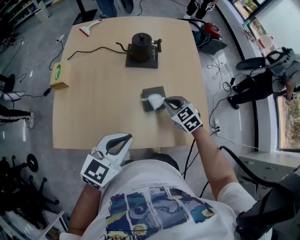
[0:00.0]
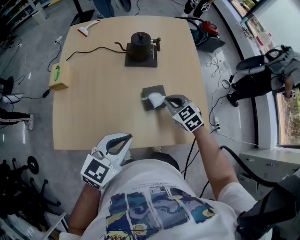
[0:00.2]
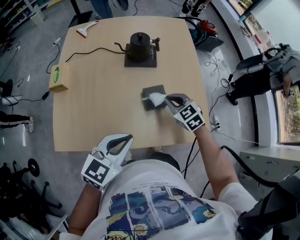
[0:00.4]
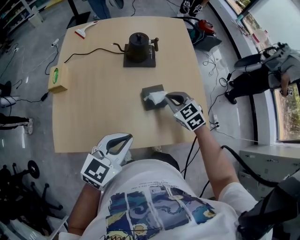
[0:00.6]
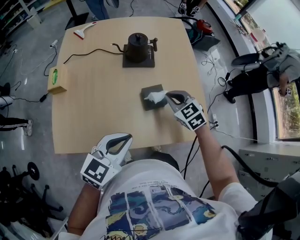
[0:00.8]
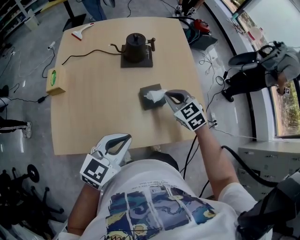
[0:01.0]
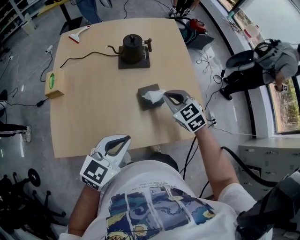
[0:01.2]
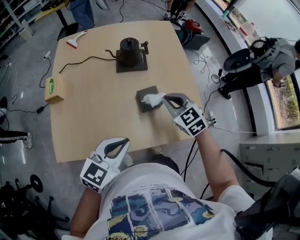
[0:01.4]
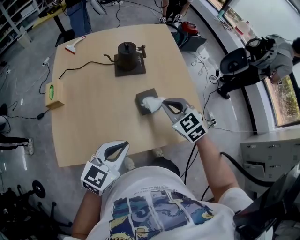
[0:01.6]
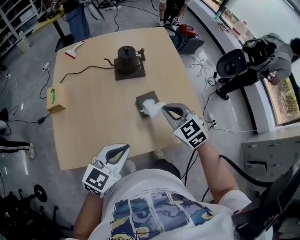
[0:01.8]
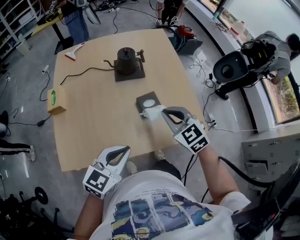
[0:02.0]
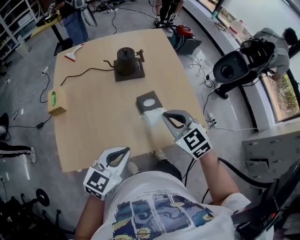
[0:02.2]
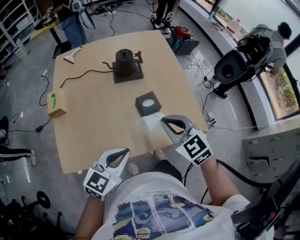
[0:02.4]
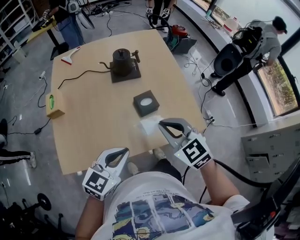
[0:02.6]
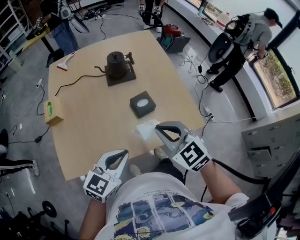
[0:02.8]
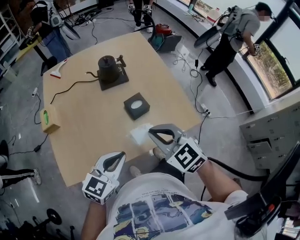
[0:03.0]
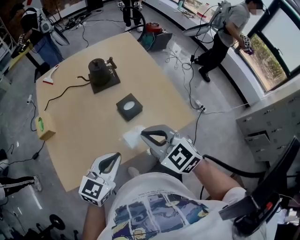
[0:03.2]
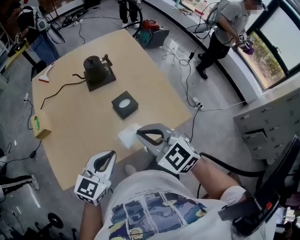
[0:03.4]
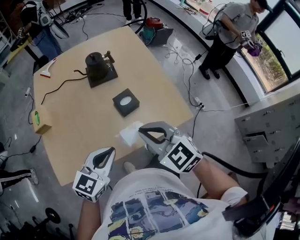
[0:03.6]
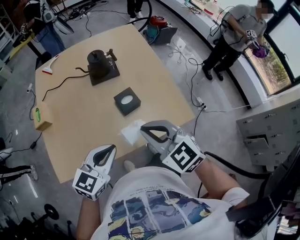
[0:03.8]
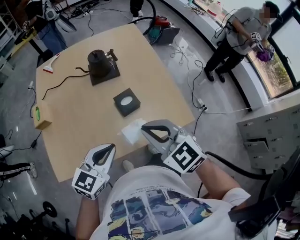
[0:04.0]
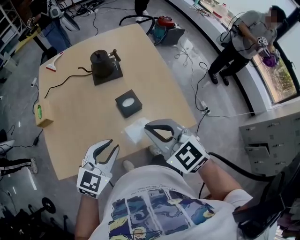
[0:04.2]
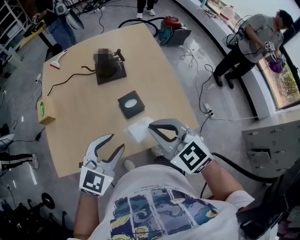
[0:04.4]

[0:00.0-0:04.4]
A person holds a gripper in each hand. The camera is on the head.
0:00.0 to 0:01.4: The right gripper is displaced upward by roughly 10 cm.
0:01.4 to 0:03.0: The right gripper is displaced backward and upward by approximately 20 cm.
0:03.0 to 0:04.4: The right gripper is displaced to the right by approximately 5 cm. The left gripper moves to the right and forward, some 10 cm, and opens.

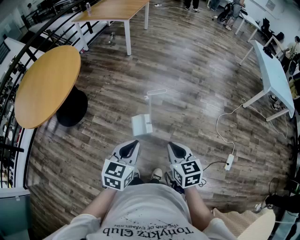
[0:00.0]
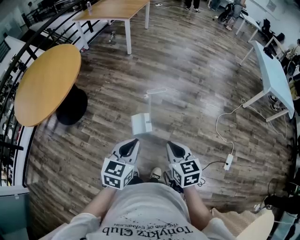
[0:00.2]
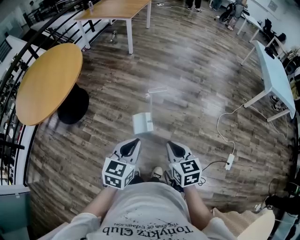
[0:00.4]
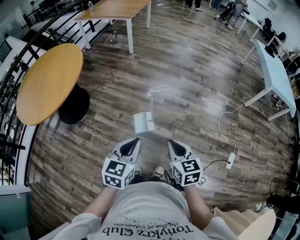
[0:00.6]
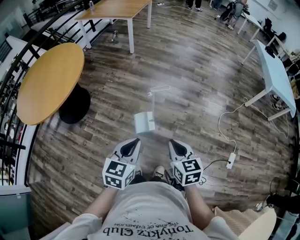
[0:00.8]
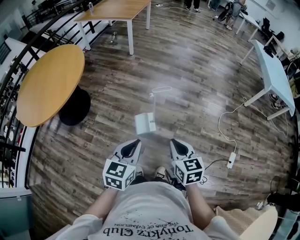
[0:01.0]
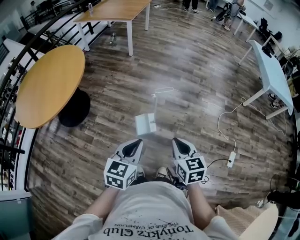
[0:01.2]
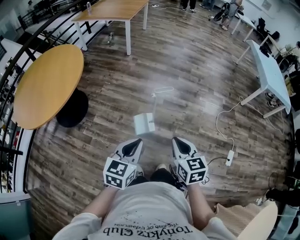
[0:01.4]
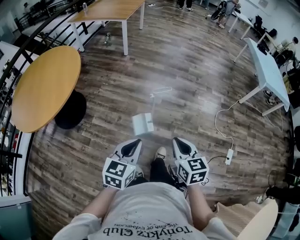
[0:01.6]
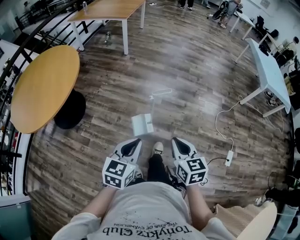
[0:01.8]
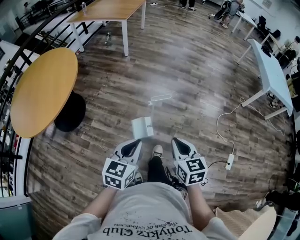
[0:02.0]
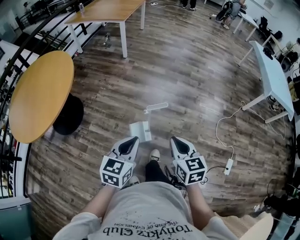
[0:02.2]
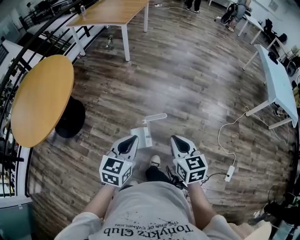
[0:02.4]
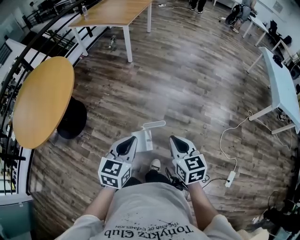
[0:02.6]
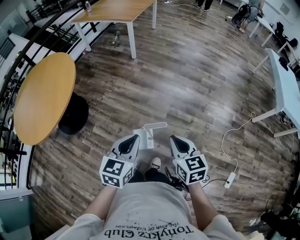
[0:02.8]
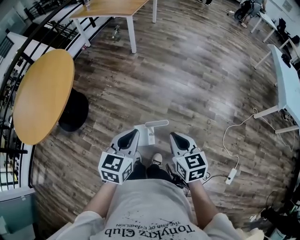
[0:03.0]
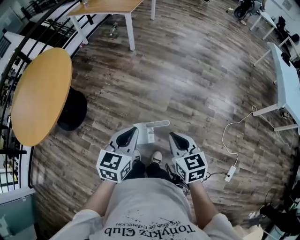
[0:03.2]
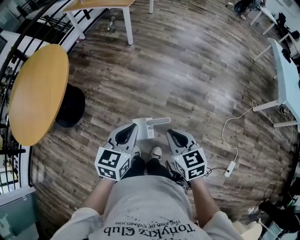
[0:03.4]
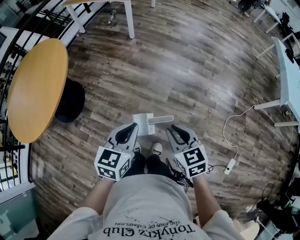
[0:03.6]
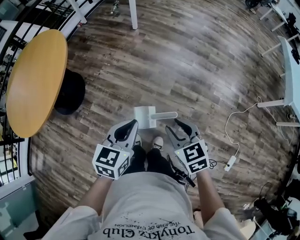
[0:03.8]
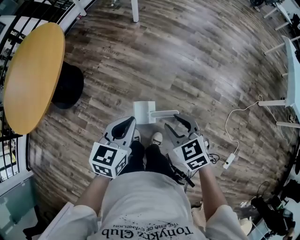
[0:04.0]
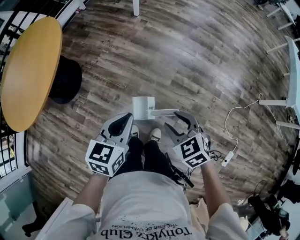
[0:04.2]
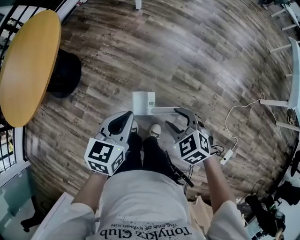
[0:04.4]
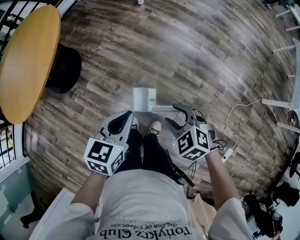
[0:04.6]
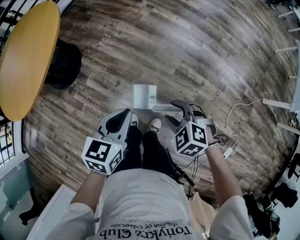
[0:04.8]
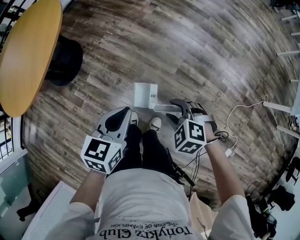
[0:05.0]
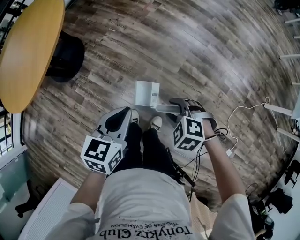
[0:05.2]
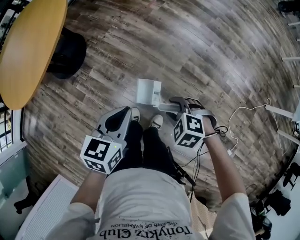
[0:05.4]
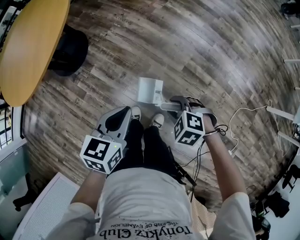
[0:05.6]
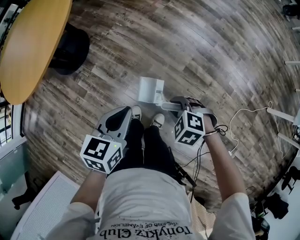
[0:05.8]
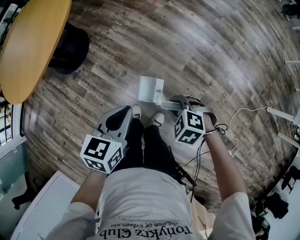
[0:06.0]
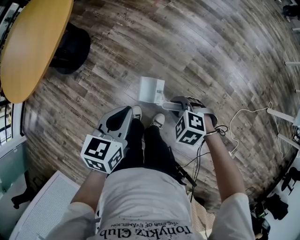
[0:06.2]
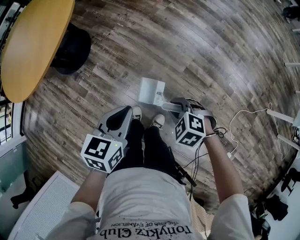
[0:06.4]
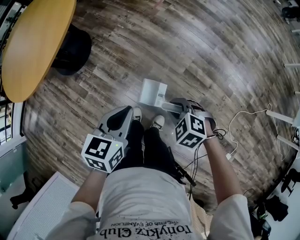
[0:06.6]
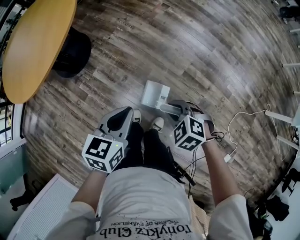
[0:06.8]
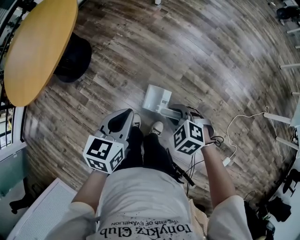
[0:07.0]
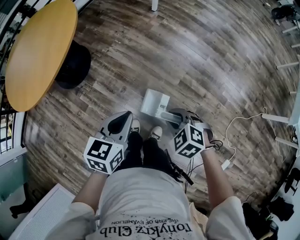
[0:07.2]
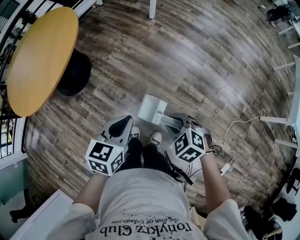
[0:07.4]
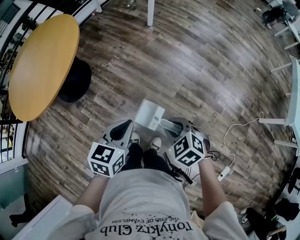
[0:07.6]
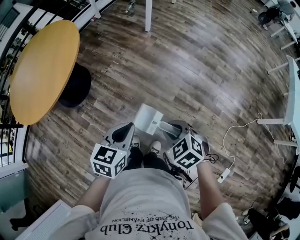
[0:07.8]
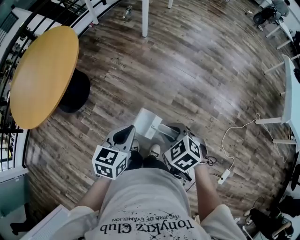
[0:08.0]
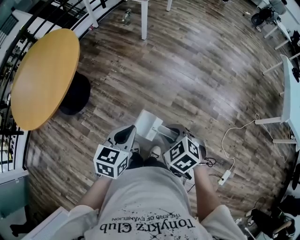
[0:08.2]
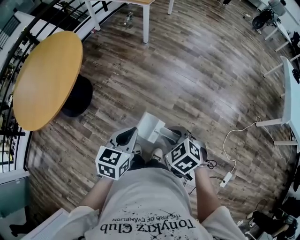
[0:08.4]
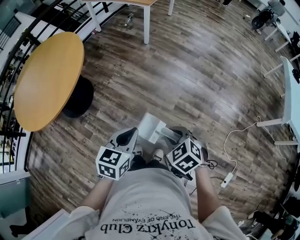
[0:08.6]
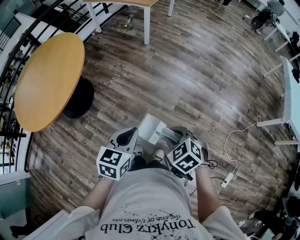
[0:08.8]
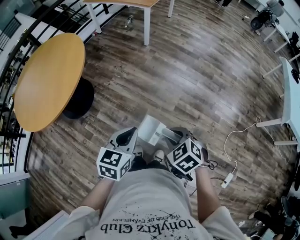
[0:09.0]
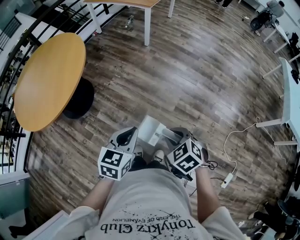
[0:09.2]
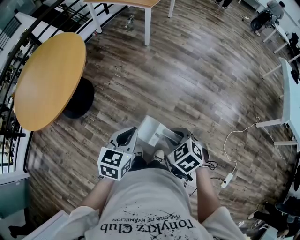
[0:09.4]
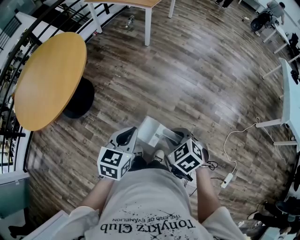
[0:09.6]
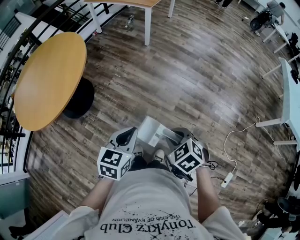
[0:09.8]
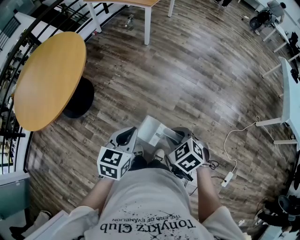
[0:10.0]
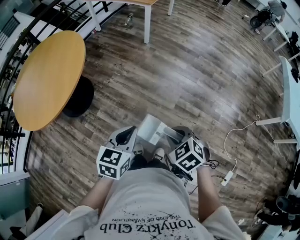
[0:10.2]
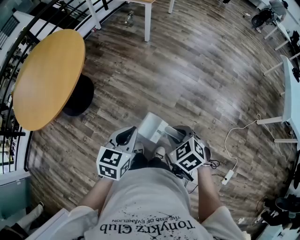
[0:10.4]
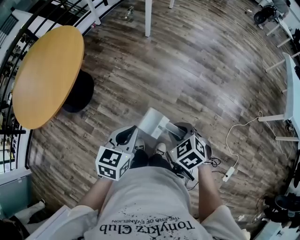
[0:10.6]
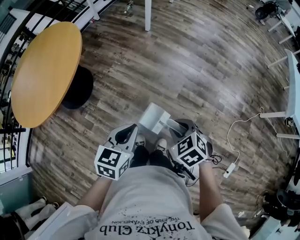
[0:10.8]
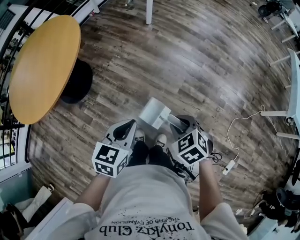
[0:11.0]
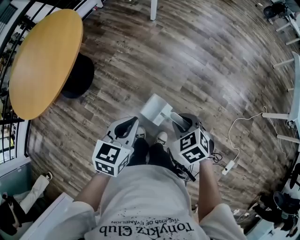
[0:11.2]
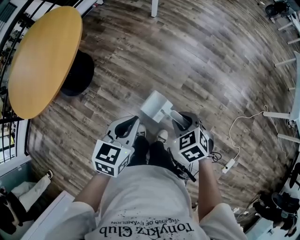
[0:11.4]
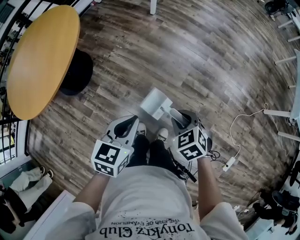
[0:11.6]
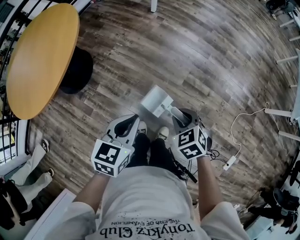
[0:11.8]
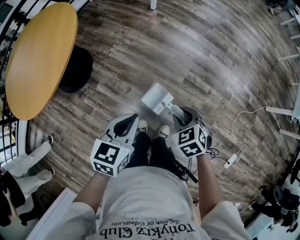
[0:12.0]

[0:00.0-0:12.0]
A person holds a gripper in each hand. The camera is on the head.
0:00.0 to 0:01.6: The left gripper travels to the left by approximately 5 cm.
0:01.6 to 0:03.0: Both grippers move forward, roughly 30 cm.
0:03.0 to 0:04.4: The two grippers go approximately 15 cm downward and forward. The right gripper rotates about 50 degrees, and opens up.
0:04.4 to 0:06.0: The right gripper shifts some 10 cm downward, rotates about 30 degrees, and closes its fingers. The left gripper moves some 5 cm.
0:06.0 to 0:07.6: The left gripper goes approximately 10 cm upward, while the right gripper is displaced upward by some 15 cm, and turns by roughly 20 degrees.
0:07.6 to 0:09.0: The left gripper ends up about 5 cm from where it was; the right gripper ends up roughly 5 cm from where it was.
0:09.0 to 0:10.4: There are only small adjustments of the grippers.
0:10.4 to 0:12.0: The right gripper heads downward and forward, covering approximately 15 cm. The left gripper moves downward, some 5 cm.

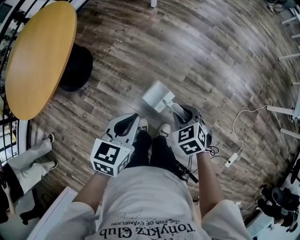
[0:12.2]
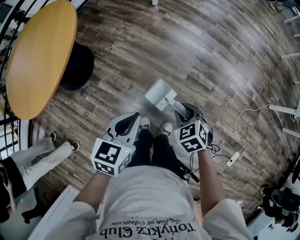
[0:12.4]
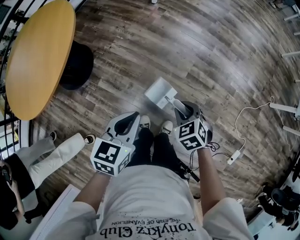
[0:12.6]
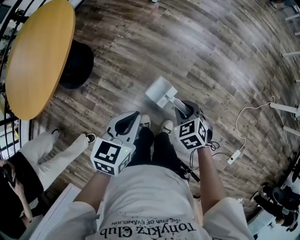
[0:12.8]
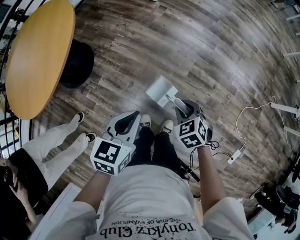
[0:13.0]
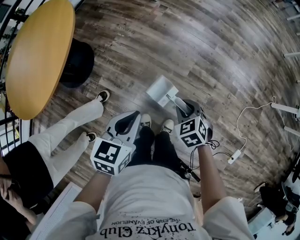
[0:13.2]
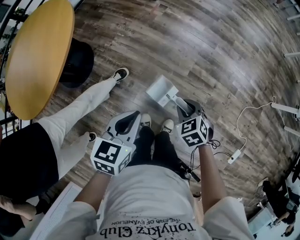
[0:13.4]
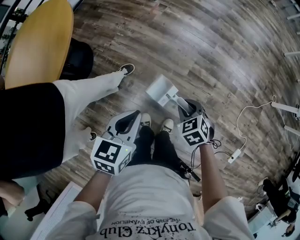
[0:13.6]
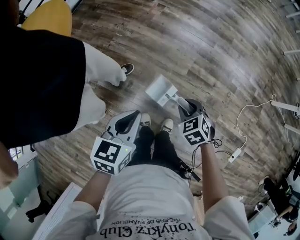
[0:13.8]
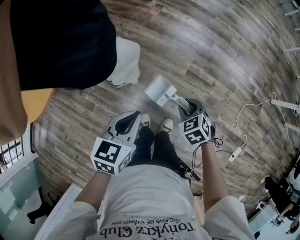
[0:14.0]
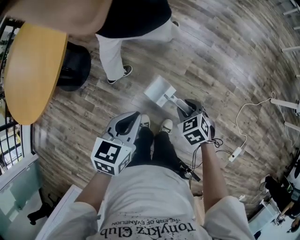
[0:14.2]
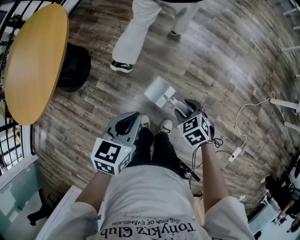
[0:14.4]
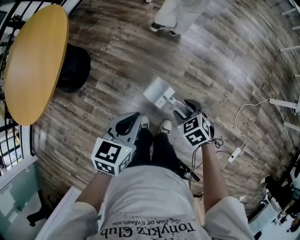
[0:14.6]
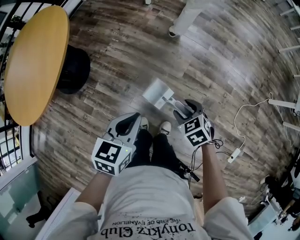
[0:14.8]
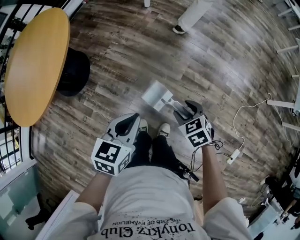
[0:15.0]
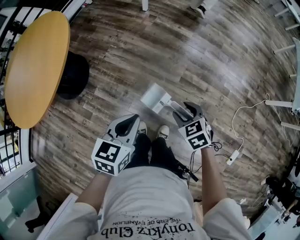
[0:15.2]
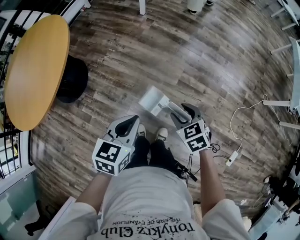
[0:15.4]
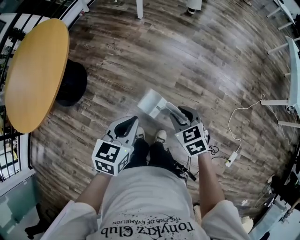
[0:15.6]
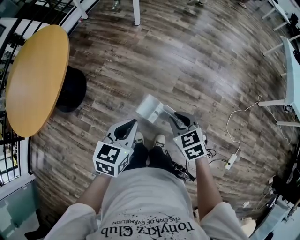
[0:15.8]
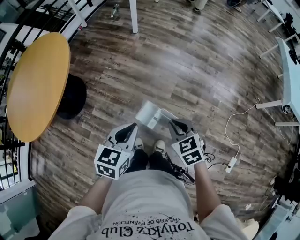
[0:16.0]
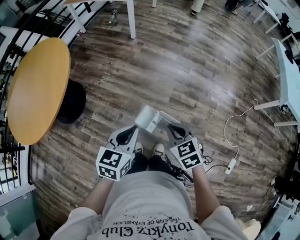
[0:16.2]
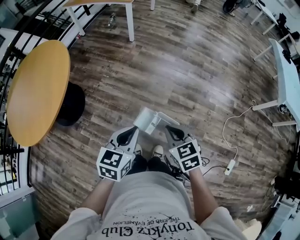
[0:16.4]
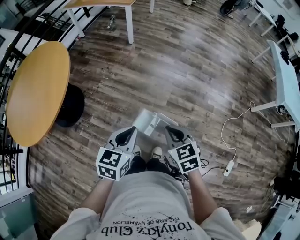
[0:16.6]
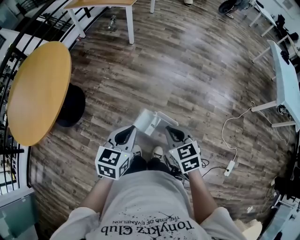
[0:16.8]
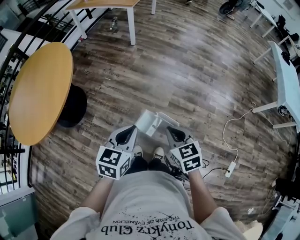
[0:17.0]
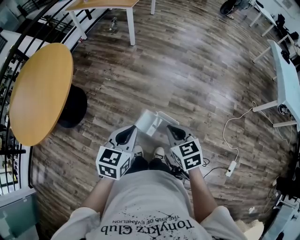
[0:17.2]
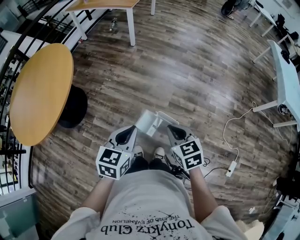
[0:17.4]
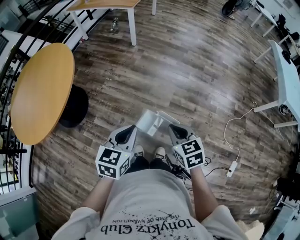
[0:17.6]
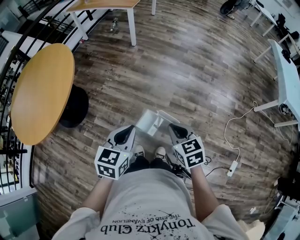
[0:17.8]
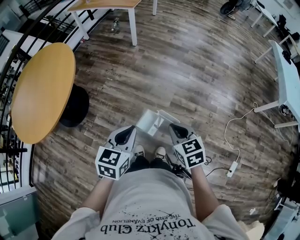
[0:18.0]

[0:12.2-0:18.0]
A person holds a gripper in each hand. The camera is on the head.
0:12.2 to 0:13.6: The right gripper moves downward, about 5 cm.
0:13.6 to 0:15.0: The right gripper opens its fingers.
0:15.0 to 0:16.6: The left gripper shifts approximately 5 cm upward, while the right gripper travels upward and backward by approximately 15 cm, turns by approximately 20 degrees, and closes up.
0:16.6 to 0:18.0: The grippers stay close to where they were, moving slightly.

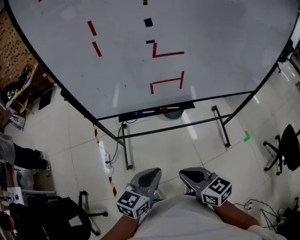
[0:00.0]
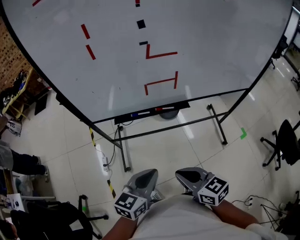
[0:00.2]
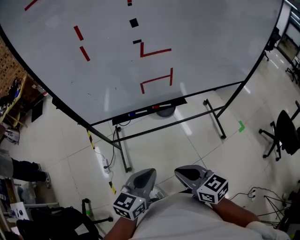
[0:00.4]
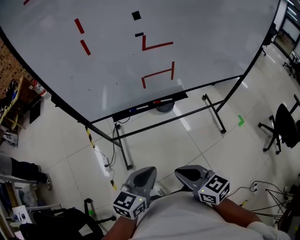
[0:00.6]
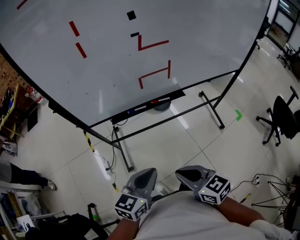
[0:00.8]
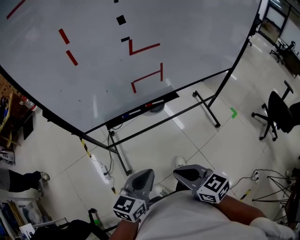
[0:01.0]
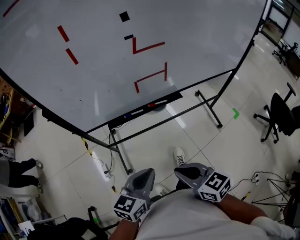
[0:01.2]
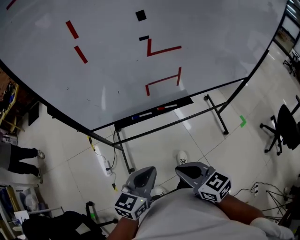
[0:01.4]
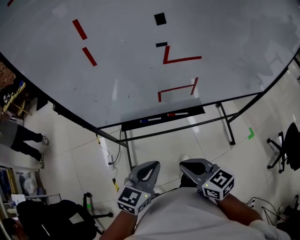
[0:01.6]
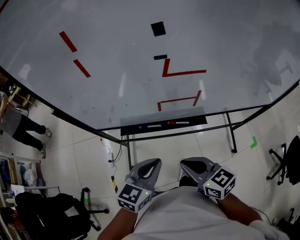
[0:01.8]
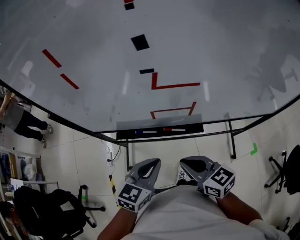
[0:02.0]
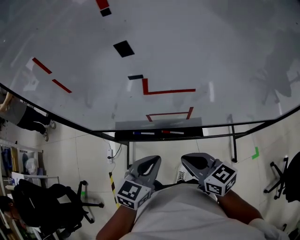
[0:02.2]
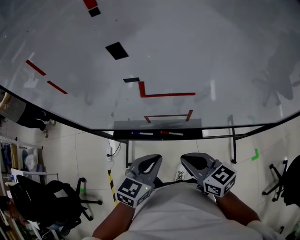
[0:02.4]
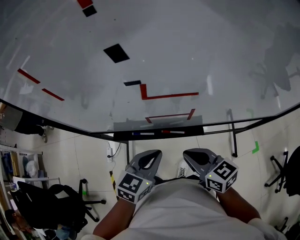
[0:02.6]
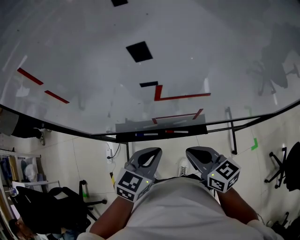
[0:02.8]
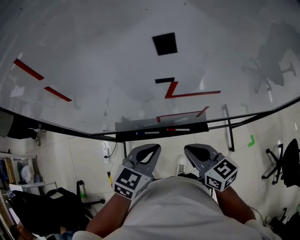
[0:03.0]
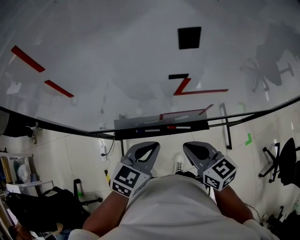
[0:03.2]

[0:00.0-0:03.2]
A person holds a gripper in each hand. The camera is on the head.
0:00.0 to 0:01.6: Both grippers travel together forward, approximately 10 cm.
0:01.6 to 0:03.2: The grippers both shift forward by about 15 cm.
